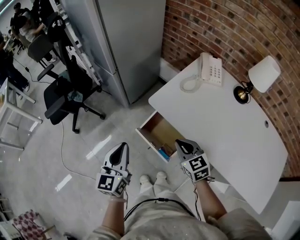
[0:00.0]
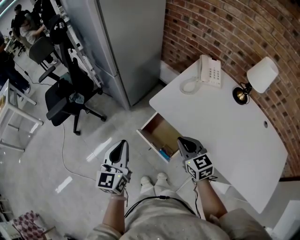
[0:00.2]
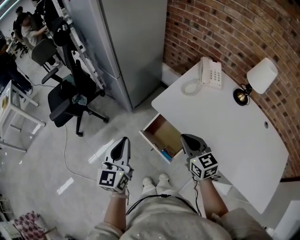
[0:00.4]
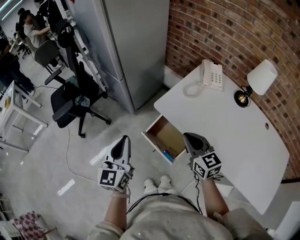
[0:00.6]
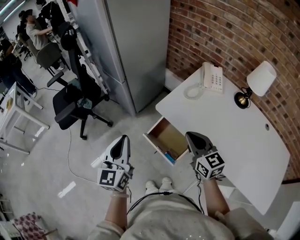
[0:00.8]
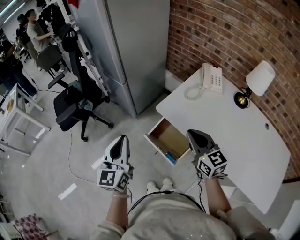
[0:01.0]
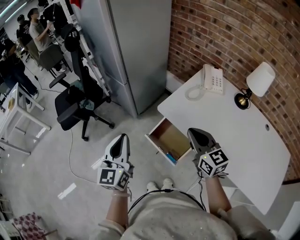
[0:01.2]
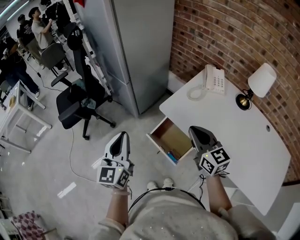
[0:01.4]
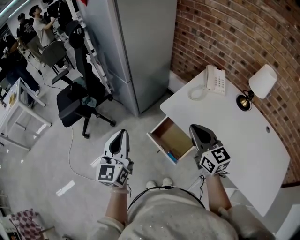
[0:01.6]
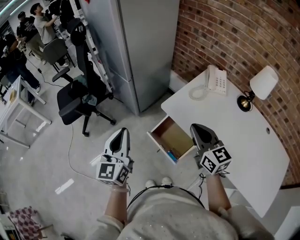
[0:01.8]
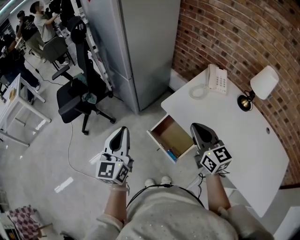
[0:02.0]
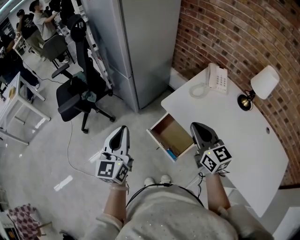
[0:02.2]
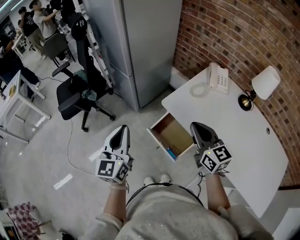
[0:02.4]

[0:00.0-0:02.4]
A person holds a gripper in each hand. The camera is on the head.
0:00.0 to 0:01.2: The right gripper travels upward by roughly 15 cm, and swivels some 20 degrees. The left gripper travels upward by about 10 cm.
0:01.2 to 0:02.4: There are only small adjustments of the grippers.

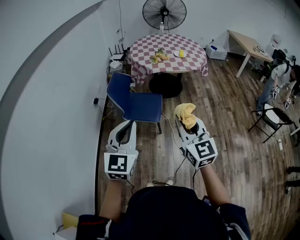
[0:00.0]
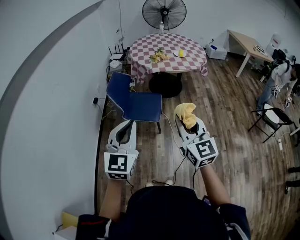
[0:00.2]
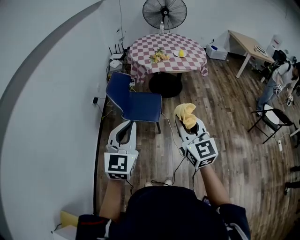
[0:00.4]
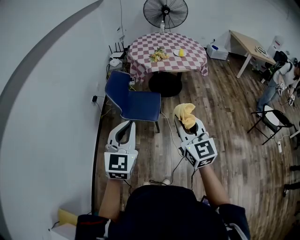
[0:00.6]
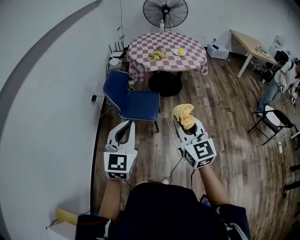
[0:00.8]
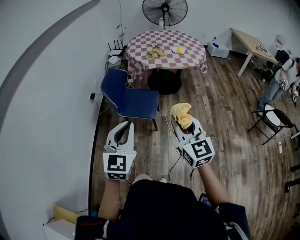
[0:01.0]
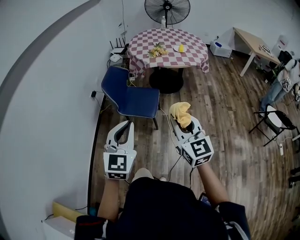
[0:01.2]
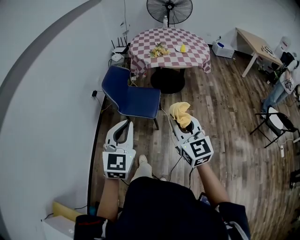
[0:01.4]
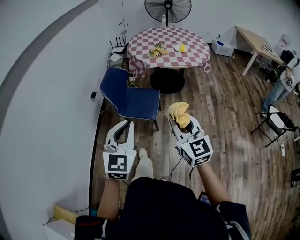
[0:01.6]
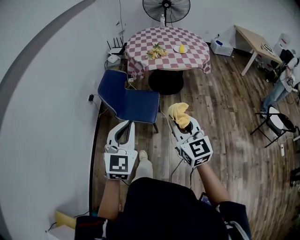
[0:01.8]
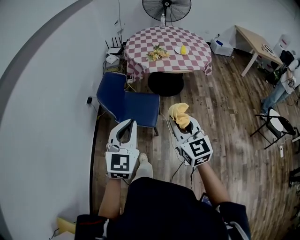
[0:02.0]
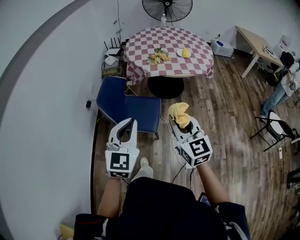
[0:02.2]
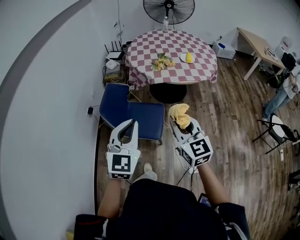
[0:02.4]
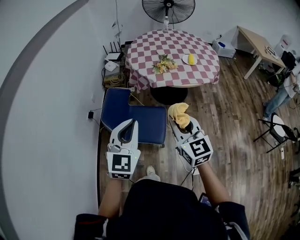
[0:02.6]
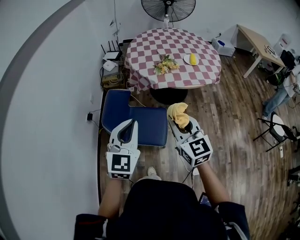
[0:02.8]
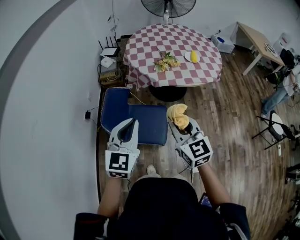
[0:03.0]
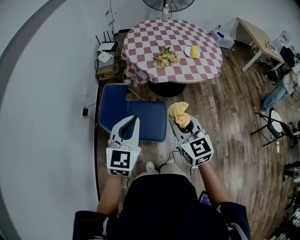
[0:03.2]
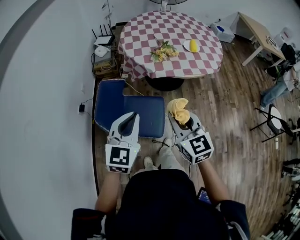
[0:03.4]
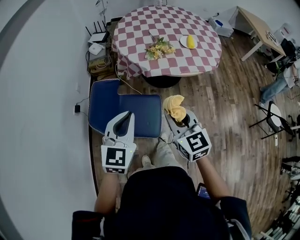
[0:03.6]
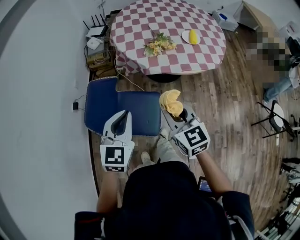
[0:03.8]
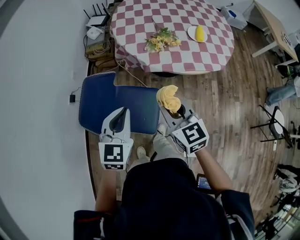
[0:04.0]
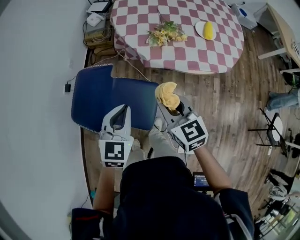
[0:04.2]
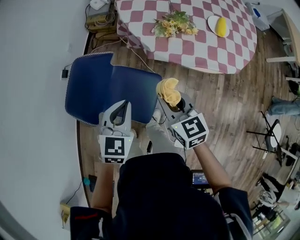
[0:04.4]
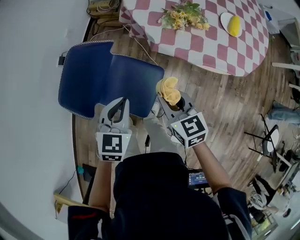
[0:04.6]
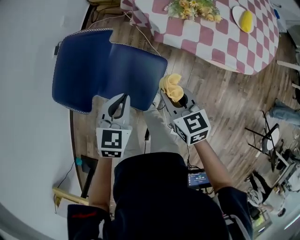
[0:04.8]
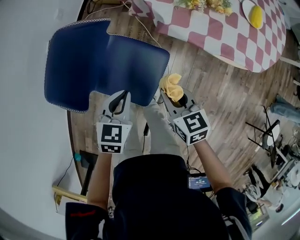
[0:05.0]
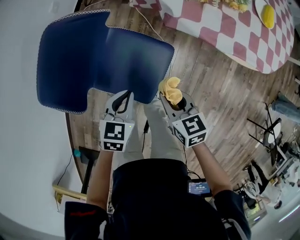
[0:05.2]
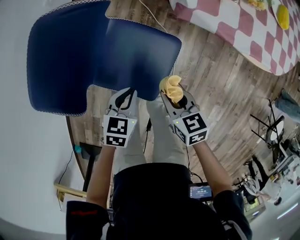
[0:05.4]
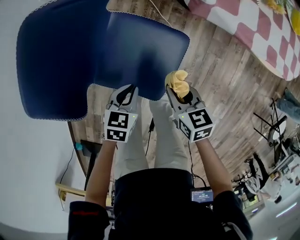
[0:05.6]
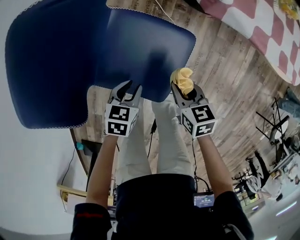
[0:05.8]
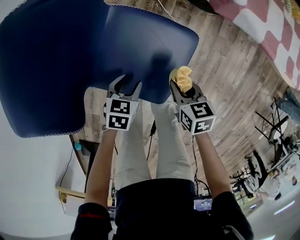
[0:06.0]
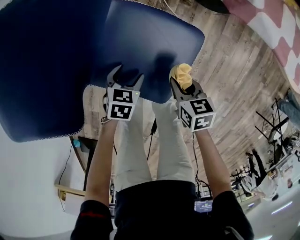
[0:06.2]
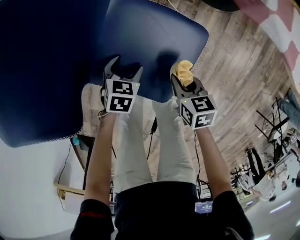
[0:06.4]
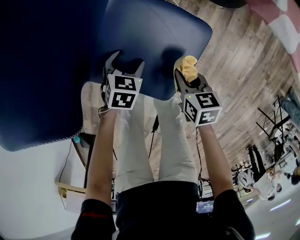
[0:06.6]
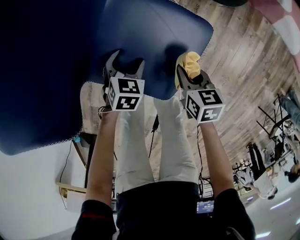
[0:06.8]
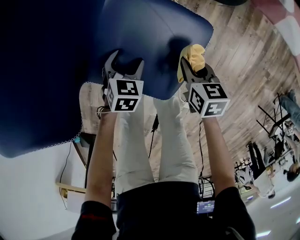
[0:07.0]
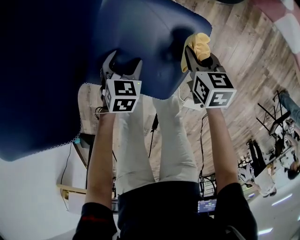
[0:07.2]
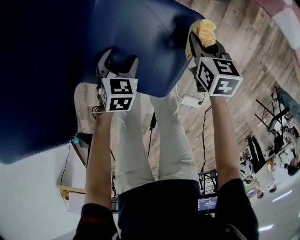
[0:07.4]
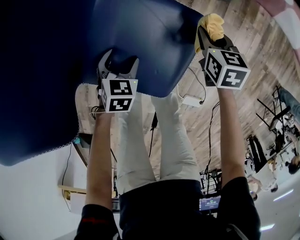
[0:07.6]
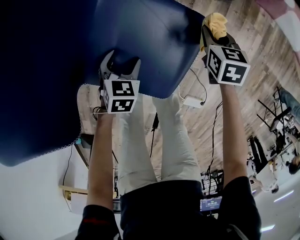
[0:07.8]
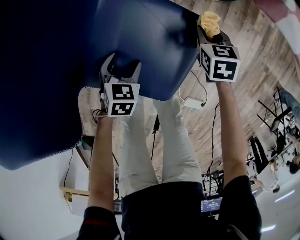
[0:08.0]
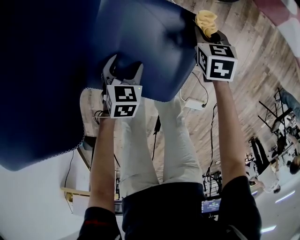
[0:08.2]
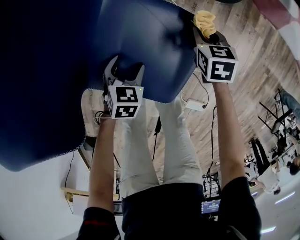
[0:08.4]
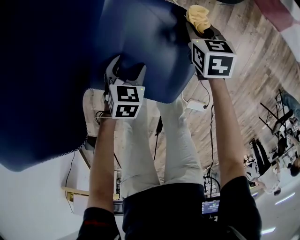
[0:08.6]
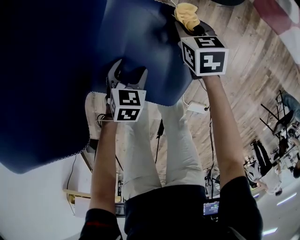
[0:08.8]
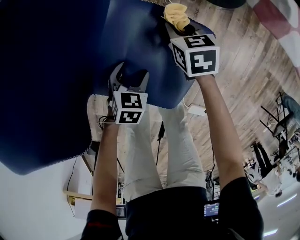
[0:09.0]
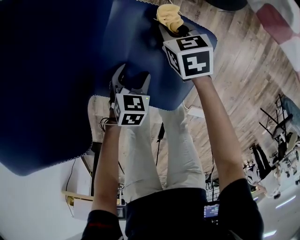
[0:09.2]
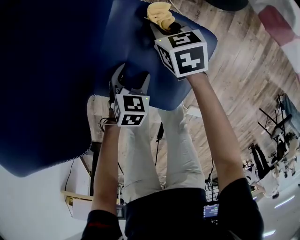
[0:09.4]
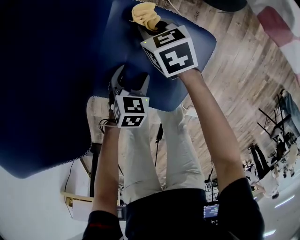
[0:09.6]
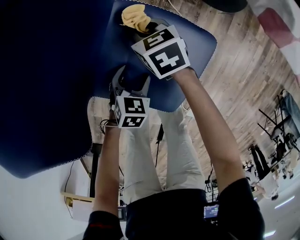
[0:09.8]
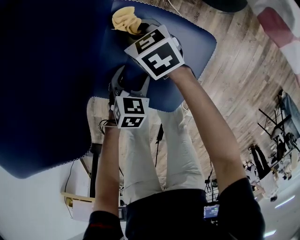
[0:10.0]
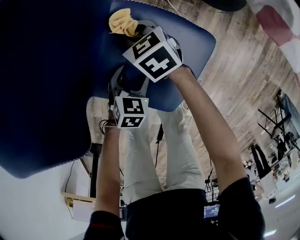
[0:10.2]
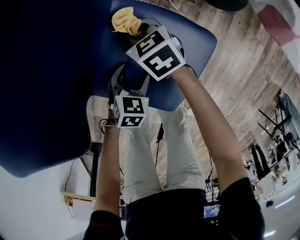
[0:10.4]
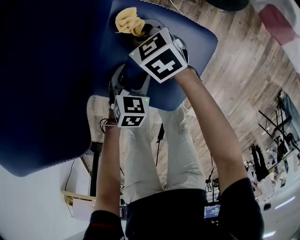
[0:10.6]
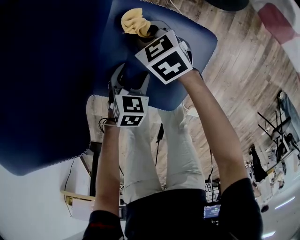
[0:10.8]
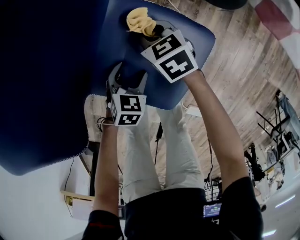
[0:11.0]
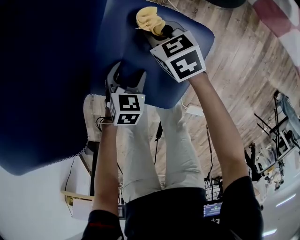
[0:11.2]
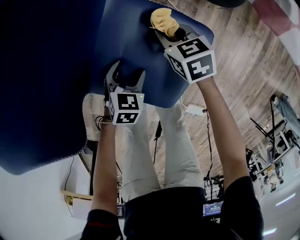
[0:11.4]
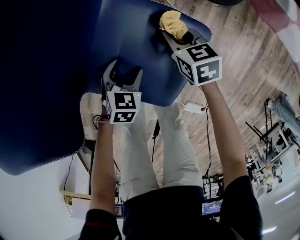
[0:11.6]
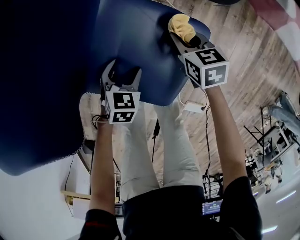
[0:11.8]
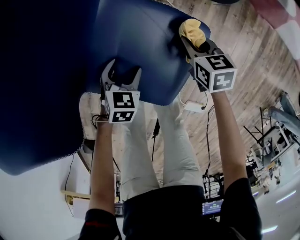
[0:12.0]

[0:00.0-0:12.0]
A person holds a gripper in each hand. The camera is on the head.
0:00.0 to 0:01.6: Both grippers travel together to the right, some 10 cm.
0:01.6 to 0:03.0: Both grippers move forward, about 40 cm.
0:03.0 to 0:04.4: The right gripper travels forward and downward by roughly 30 cm, and rotates some 30 degrees. The left gripper shifts roughly 30 cm downward, forward and to the right, and changes its angle by about 30 degrees.
0:04.4 to 0:06.0: Both grippers move downward, some 40 cm. The left gripper changes its angle by some 40 degrees, and opens its fingers. The right gripper rotates roughly 30 degrees.
0:06.0 to 0:07.6: The left gripper travels downward by approximately 10 cm, and opens up, while the right gripper goes some 20 cm forward, to the right and downward.
0:07.6 to 0:09.0: The right gripper goes roughly 15 cm to the left.
0:09.0 to 0:10.4: The right gripper goes roughly 15 cm to the left, and rotates about 20 degrees.
0:10.4 to 0:12.0: The right gripper is displaced to the right by some 20 cm, and turns by some 20 degrees.

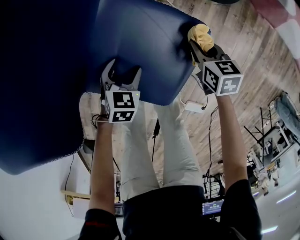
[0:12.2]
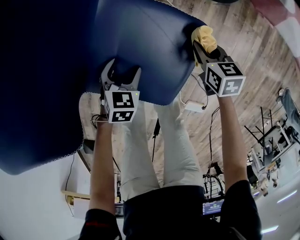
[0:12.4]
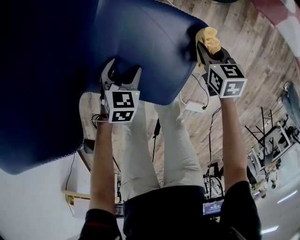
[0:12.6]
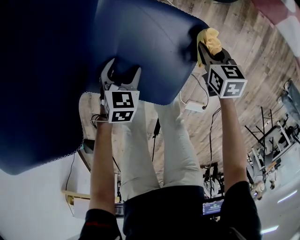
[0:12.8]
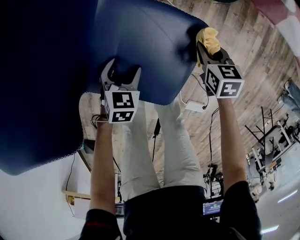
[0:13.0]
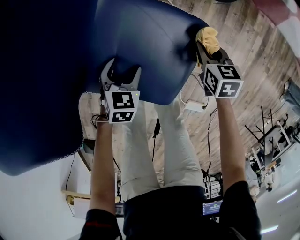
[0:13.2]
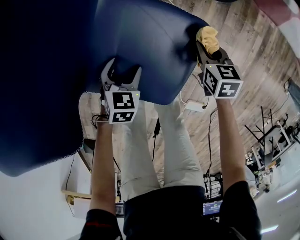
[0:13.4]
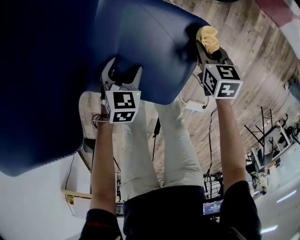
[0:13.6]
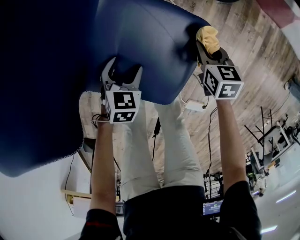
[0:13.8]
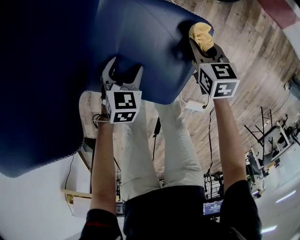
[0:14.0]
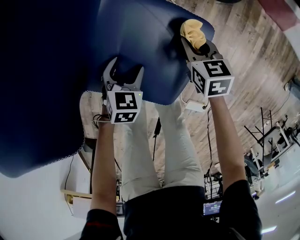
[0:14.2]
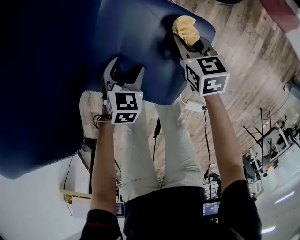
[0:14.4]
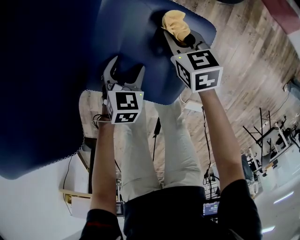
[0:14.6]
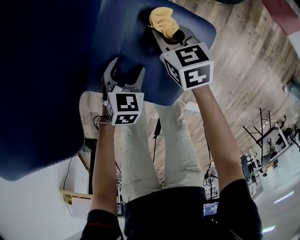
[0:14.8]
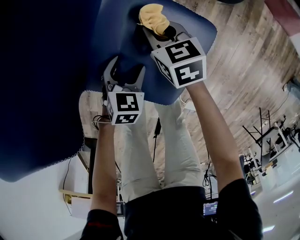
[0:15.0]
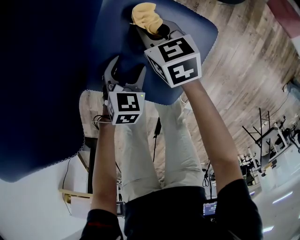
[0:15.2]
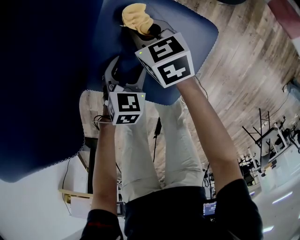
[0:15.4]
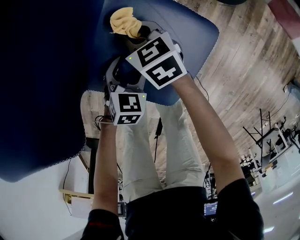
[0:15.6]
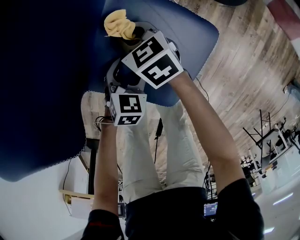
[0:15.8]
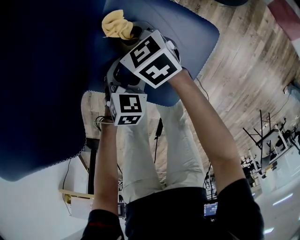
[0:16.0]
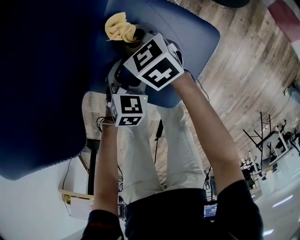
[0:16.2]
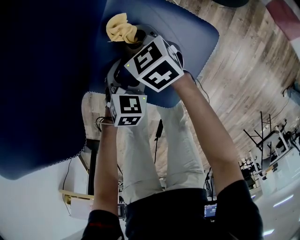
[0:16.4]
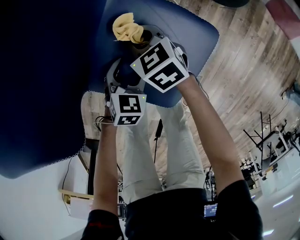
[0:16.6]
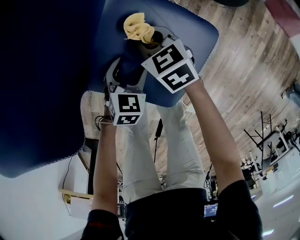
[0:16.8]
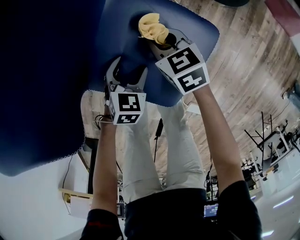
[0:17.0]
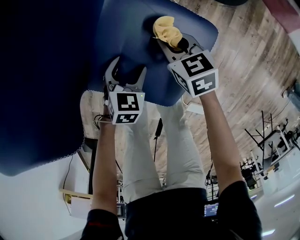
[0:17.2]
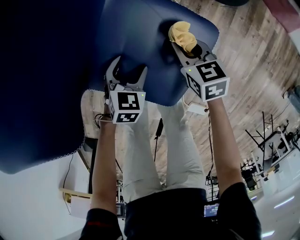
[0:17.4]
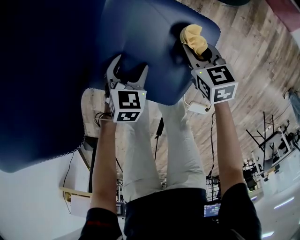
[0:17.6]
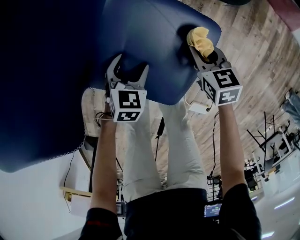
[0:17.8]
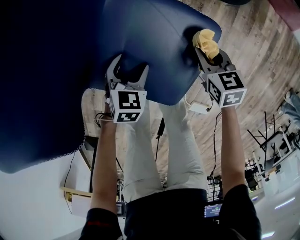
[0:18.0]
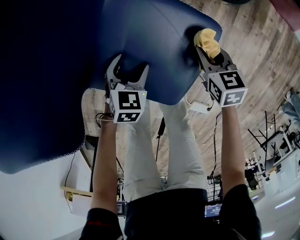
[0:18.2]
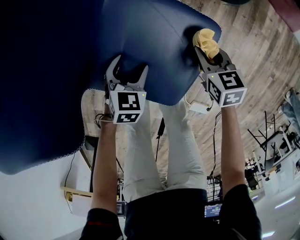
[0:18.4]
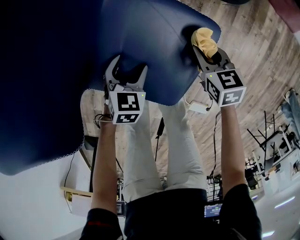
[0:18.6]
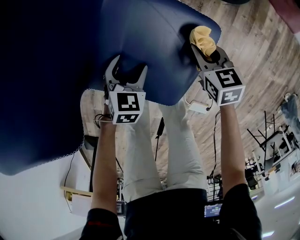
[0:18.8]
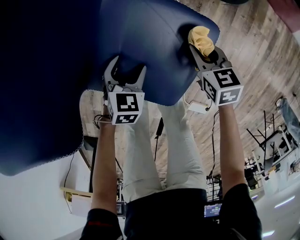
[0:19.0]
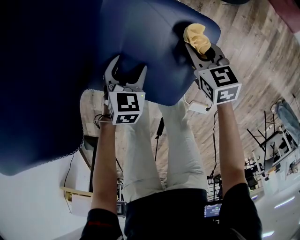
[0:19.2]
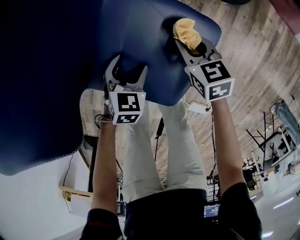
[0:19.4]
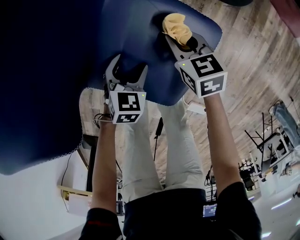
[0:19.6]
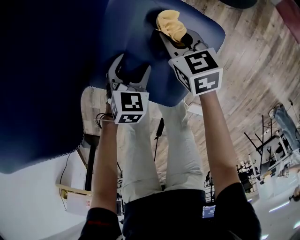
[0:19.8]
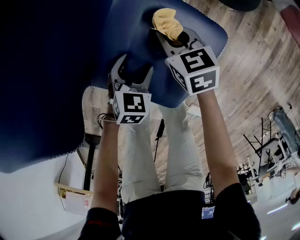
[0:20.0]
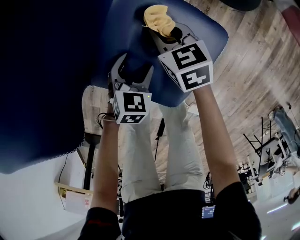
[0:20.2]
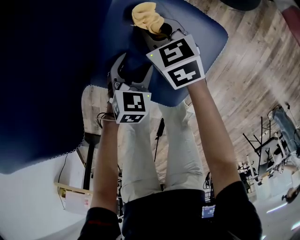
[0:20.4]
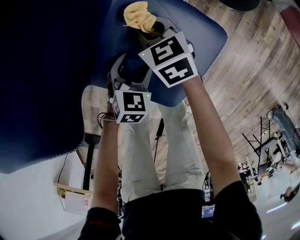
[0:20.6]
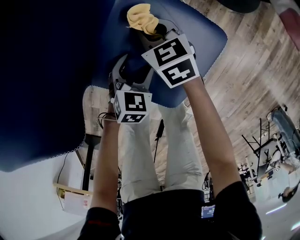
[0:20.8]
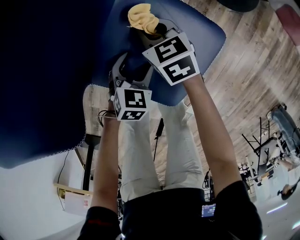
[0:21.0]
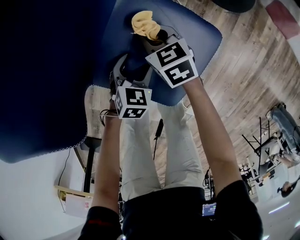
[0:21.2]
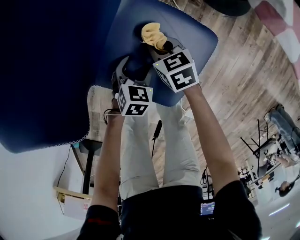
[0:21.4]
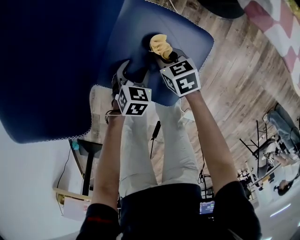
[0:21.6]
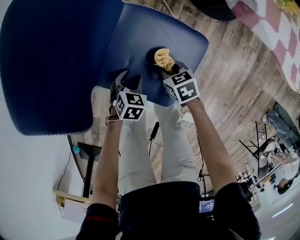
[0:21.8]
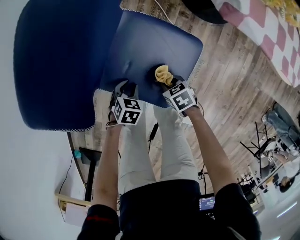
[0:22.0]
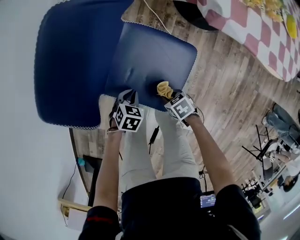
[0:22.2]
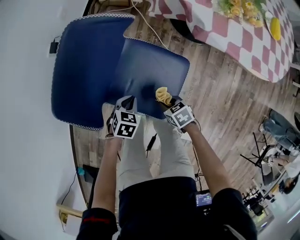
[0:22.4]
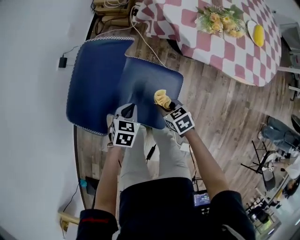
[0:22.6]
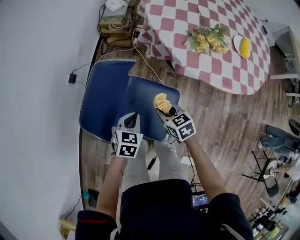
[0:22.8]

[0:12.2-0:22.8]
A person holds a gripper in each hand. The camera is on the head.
0:12.2 to 0:13.8: The grippers move only a little.
0:13.8 to 0:15.2: The right gripper travels to the left by approximately 20 cm.
0:16.8 to 0:18.2: The right gripper is displaced to the right by roughly 20 cm, and changes its angle by about 20 degrees.
0:18.2 to 0:19.8: The right gripper is displaced to the left and forward by about 15 cm.
0:19.8 to 0:21.2: The right gripper moves to the left, approximately 5 cm.
0:21.2 to 0:22.8: The two grippers go approximately 30 cm upward. The left gripper closes up.
